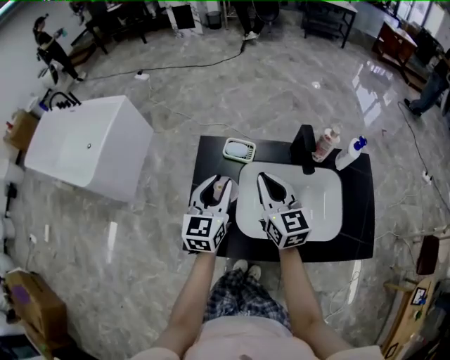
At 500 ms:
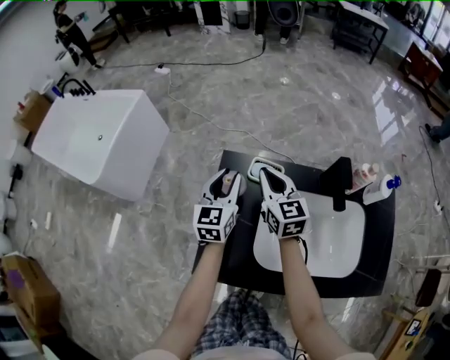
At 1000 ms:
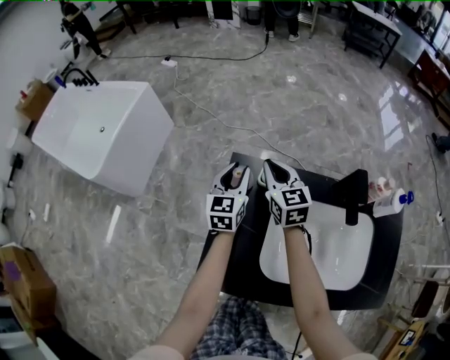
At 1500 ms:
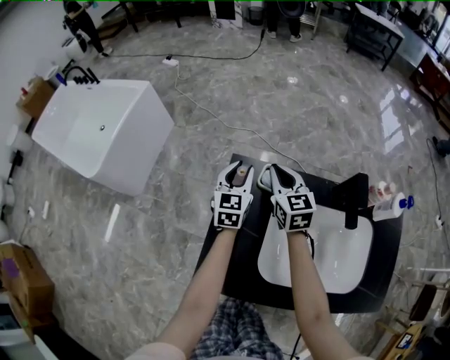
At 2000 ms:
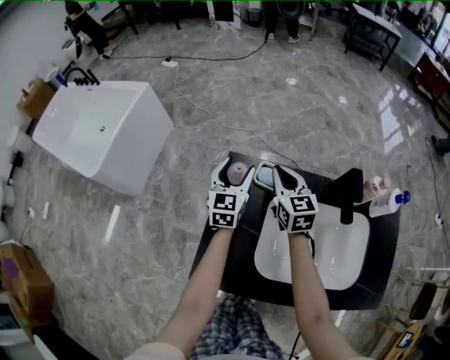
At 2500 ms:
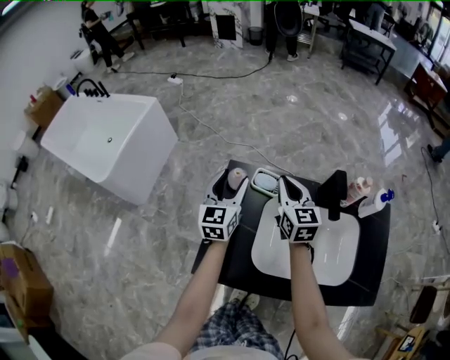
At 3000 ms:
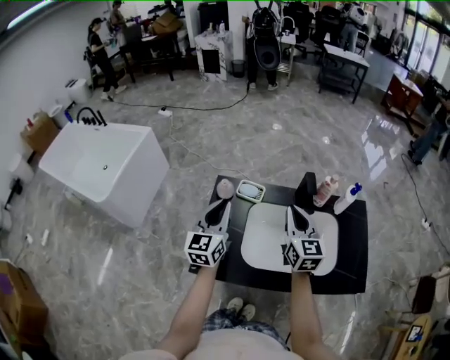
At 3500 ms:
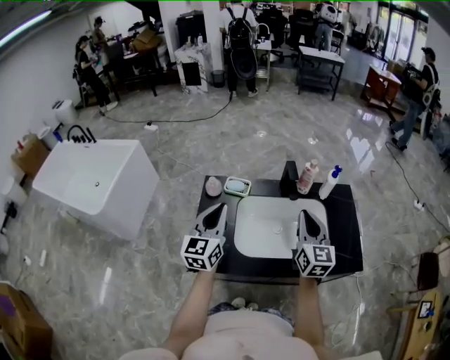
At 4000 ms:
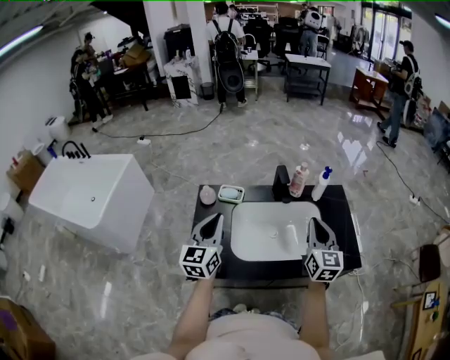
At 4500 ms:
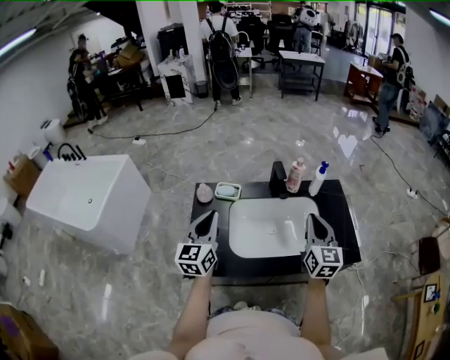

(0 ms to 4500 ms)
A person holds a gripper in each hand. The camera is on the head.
0 ms - 2000 ms: The two grippers go approximately 25 cm forward and downward. The left gripper opens.
2000 ms - 4500 ms: The right gripper shifts approximately 50 cm backward, to the right and upward, and turns by approximately 30 degrees. Meanwhile the left gripper shifts approximately 35 cm backward and upward, and closes up.

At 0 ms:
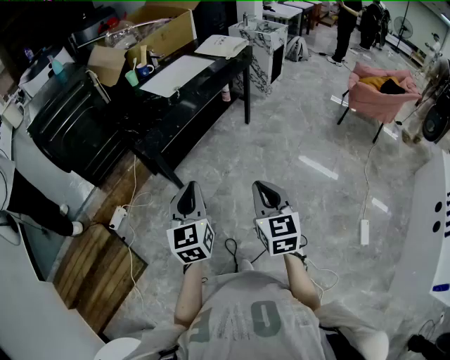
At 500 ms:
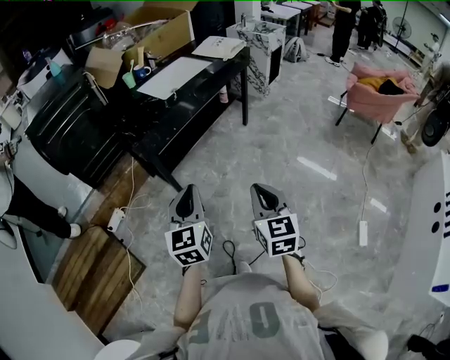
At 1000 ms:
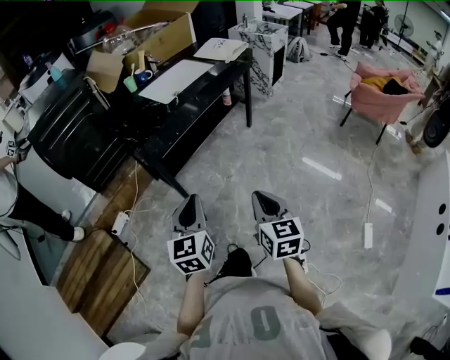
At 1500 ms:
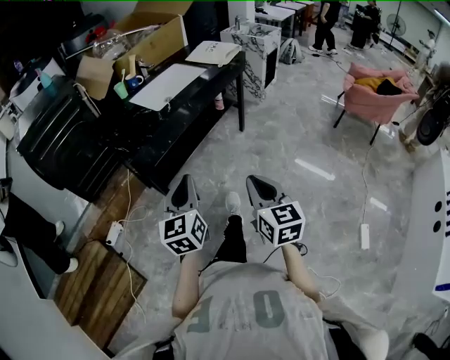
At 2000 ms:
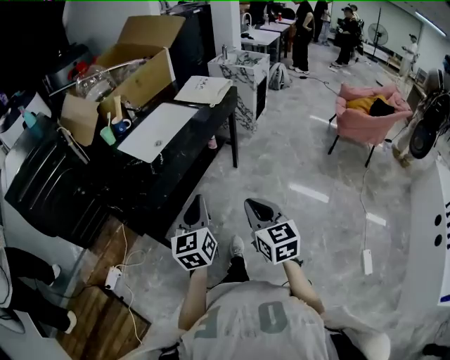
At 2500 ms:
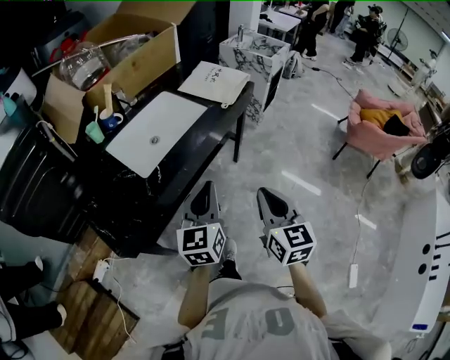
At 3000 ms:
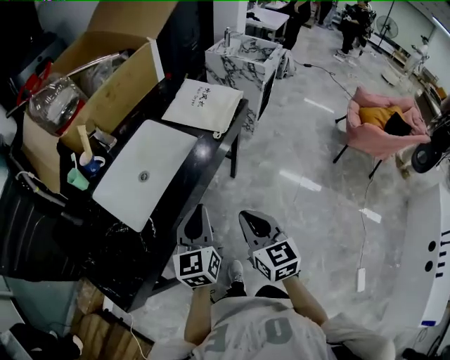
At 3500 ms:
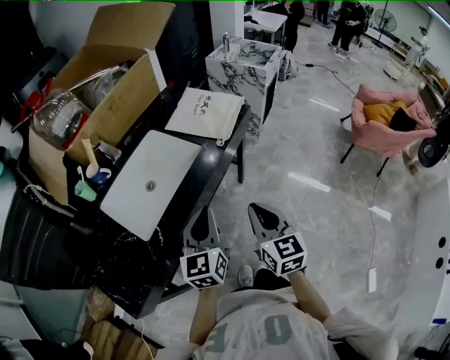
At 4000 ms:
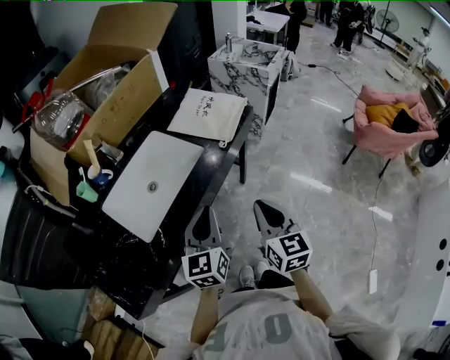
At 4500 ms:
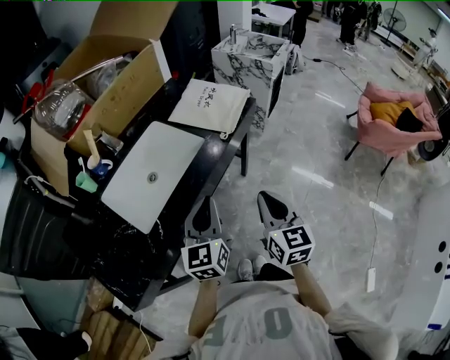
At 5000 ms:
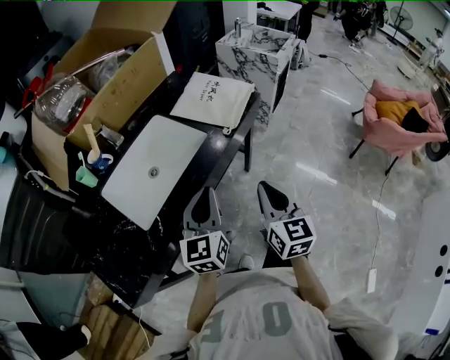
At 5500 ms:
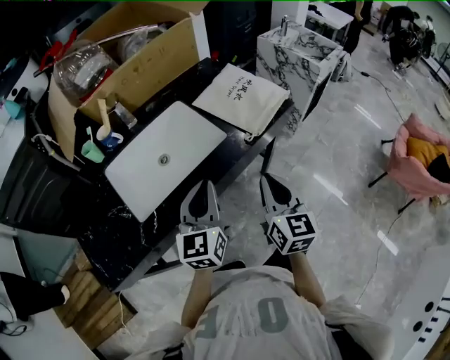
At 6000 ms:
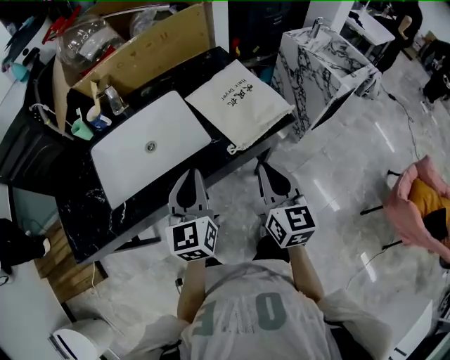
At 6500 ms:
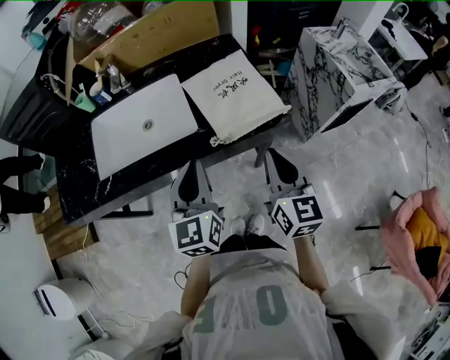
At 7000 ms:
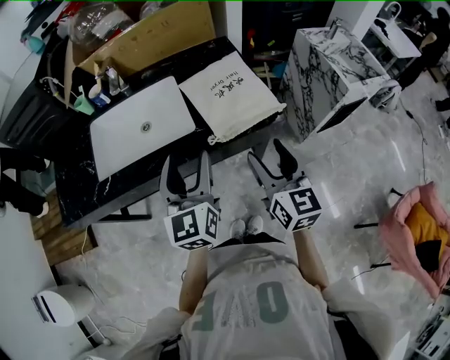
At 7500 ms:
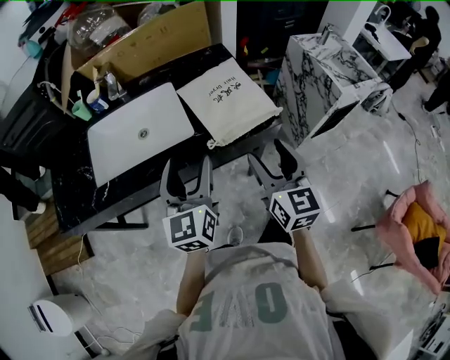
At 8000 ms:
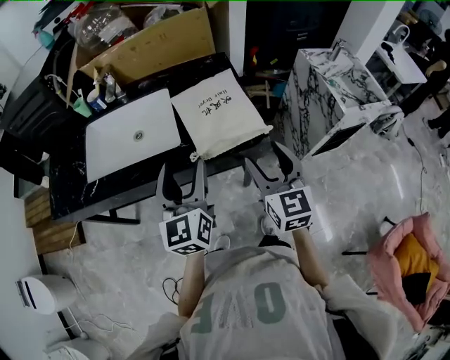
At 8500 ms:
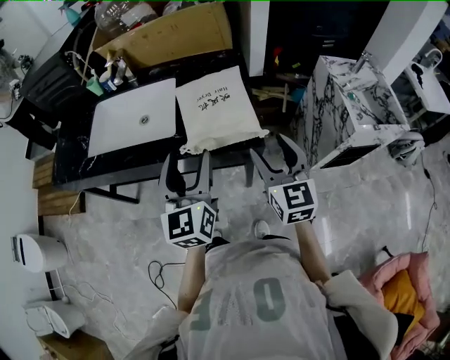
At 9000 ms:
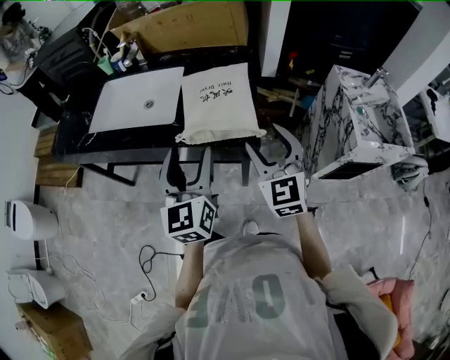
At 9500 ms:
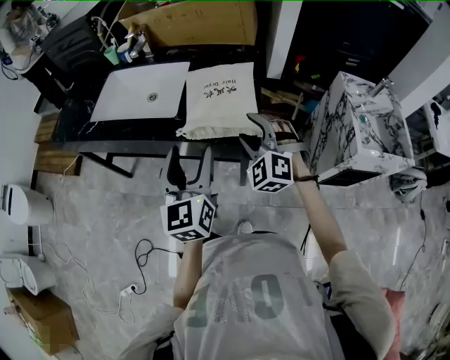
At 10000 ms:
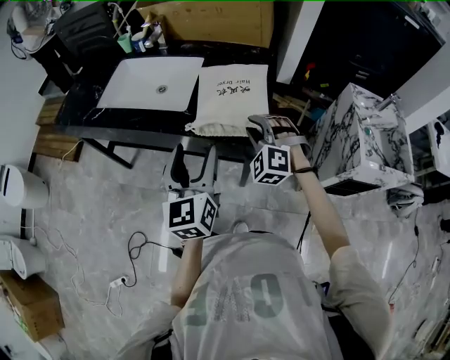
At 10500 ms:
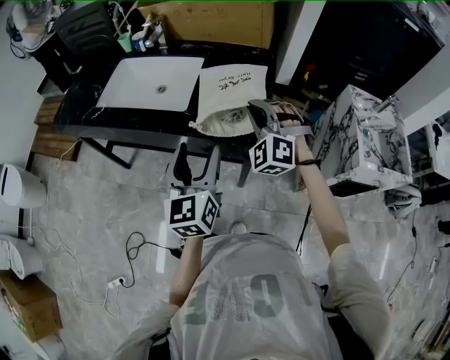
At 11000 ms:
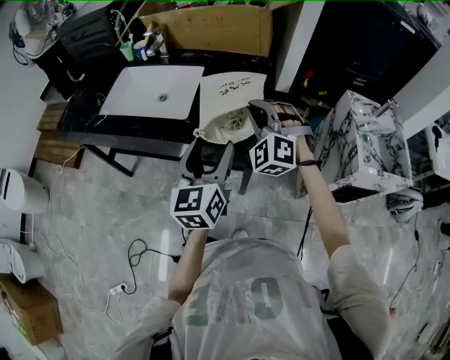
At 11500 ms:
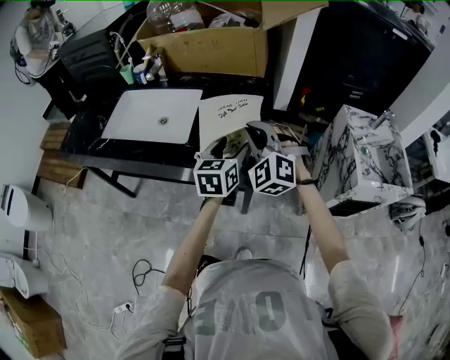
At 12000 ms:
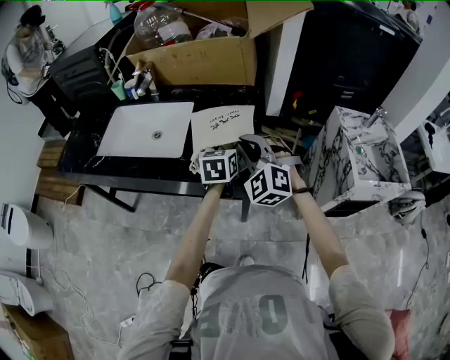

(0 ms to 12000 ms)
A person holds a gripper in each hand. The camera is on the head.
0 ms - 2000 ms: The two grippers go roughly 25 cm forward.
2000 ms - 4000 ms: Both grippers move forward, roughly 35 cm.
4000 ms - 6000 ms: The left gripper shifts by some 15 cm, and swivels roughly 30 degrees, while the right gripper moves about 25 cm, and turns by about 20 degrees.
6000 ms - 8000 ms: Both grippers move to the right, roughly 15 cm. The left gripper rotates approximately 20 degrees, and opens its fingers. Meanwhile the right gripper turns by roughly 20 degrees, and opens its fingers.
8000 ms - 10000 ms: The left gripper moves to the right and backward, approximately 10 cm, and rotates about 20 degrees. Meanwhile the right gripper goes roughly 15 cm forward and downward, twists roughly 70 degrees counterclockwise, seen from behind, and closes.
10000 ms - 12000 ms: The left gripper moves forward, to the right and downward, some 25 cm, and swivels some 30 degrees. Meanwhile the right gripper travels upward by roughly 10 cm.

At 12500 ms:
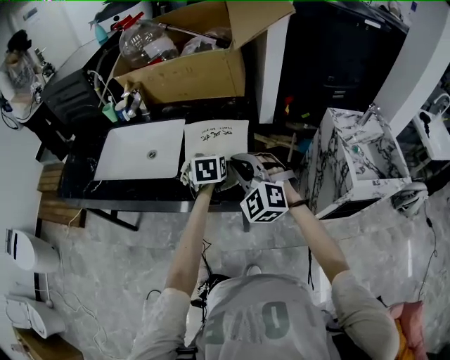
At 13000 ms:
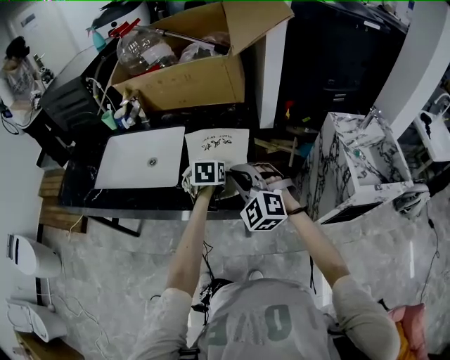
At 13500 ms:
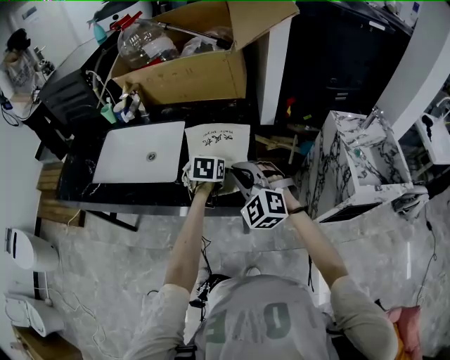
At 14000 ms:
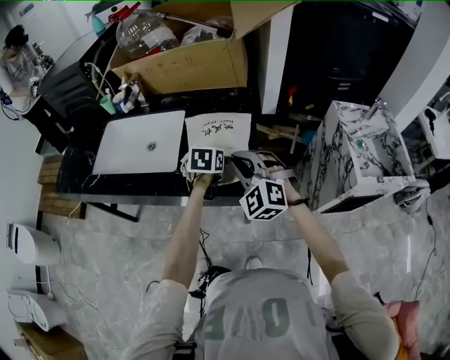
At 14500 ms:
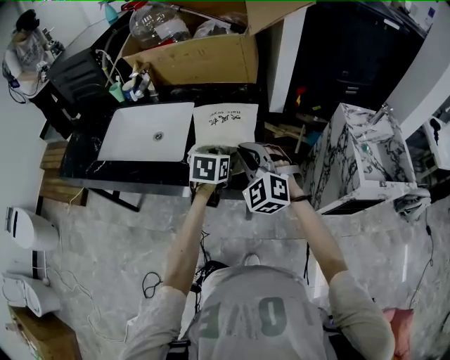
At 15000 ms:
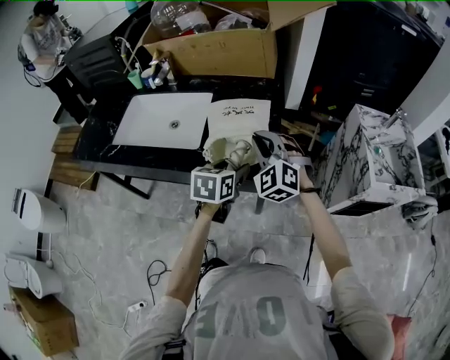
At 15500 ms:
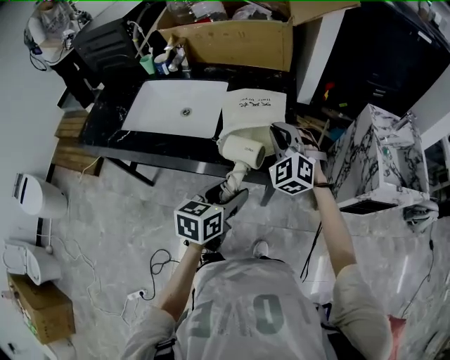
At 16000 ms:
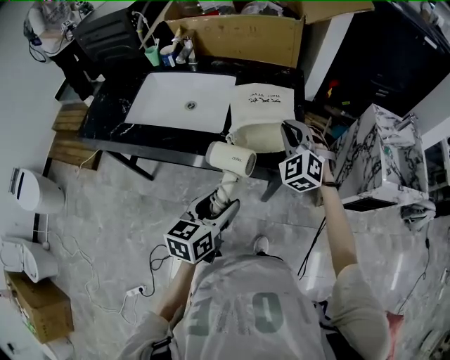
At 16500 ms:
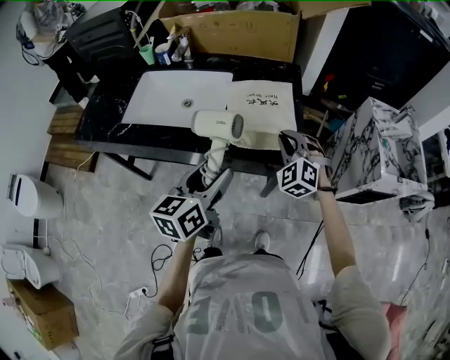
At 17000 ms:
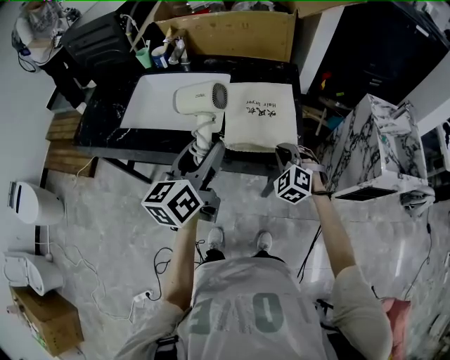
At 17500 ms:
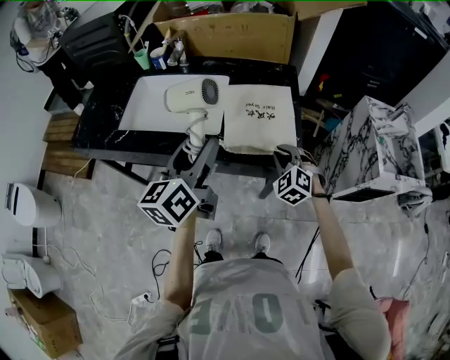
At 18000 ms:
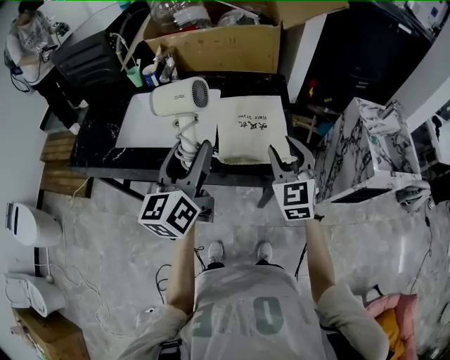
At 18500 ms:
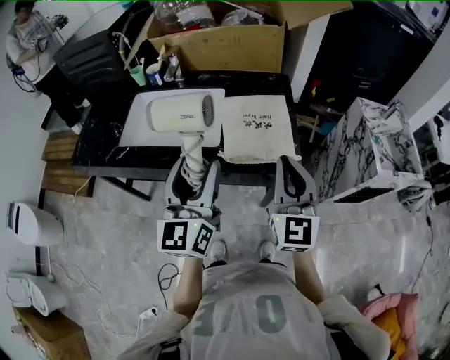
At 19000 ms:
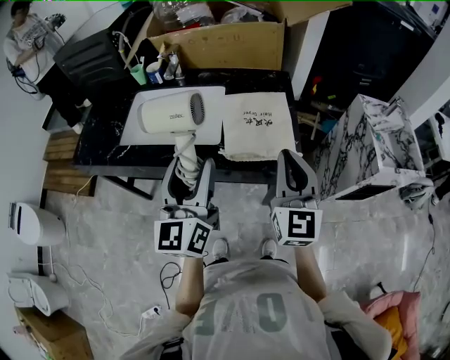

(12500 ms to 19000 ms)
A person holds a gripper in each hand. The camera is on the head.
12500 ms - 14500 ms: The grippers make only small movements.
14500 ms - 17000 ms: The left gripper is displaced to the left, upward and backward by about 25 cm, and angles its fingers upward, by about 40 degrees, while the right gripper shifts about 10 cm downward.
17000 ms - 19000 ms: The left gripper is displaced upward by about 5 cm, and turns by some 20 degrees. Meanwhile the right gripper shifts some 20 cm upward, points its fingers roughly 40 degrees further upward, and opens, then closes again.

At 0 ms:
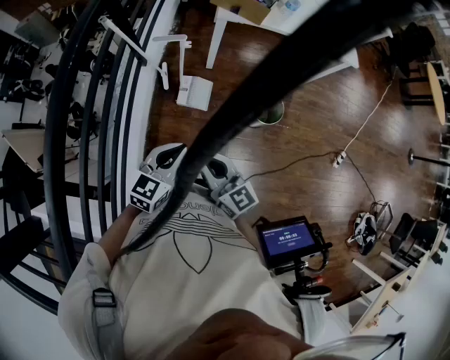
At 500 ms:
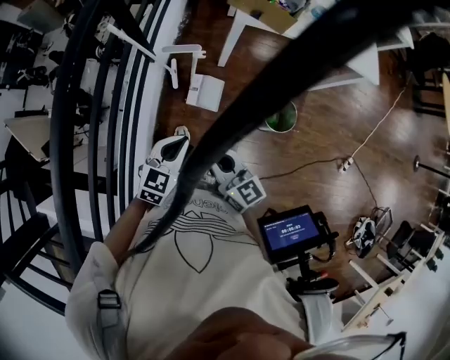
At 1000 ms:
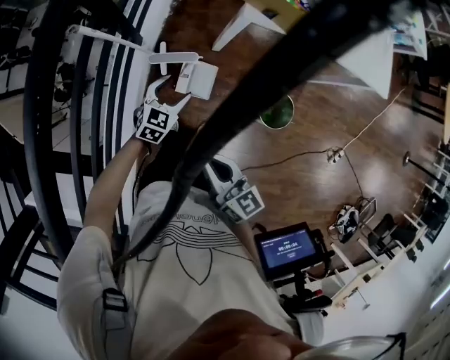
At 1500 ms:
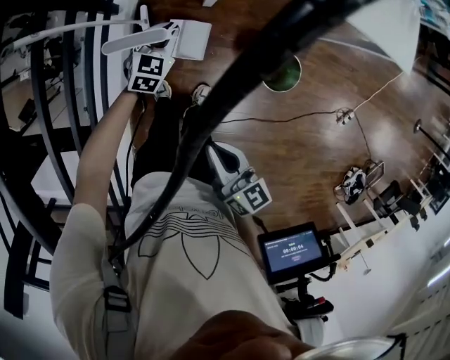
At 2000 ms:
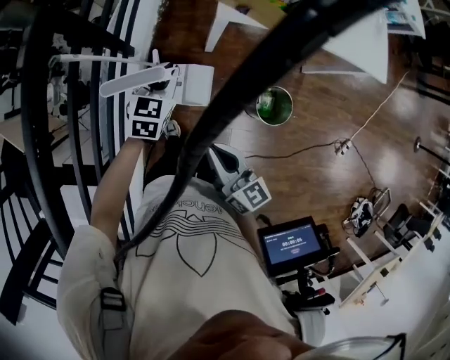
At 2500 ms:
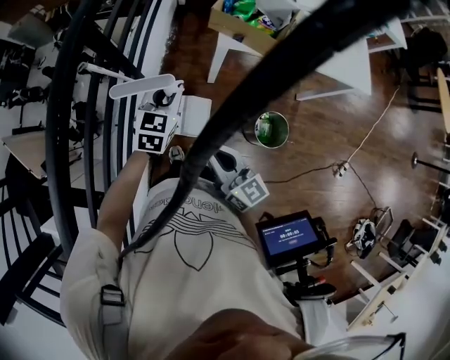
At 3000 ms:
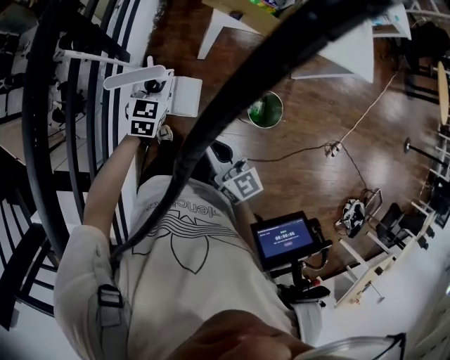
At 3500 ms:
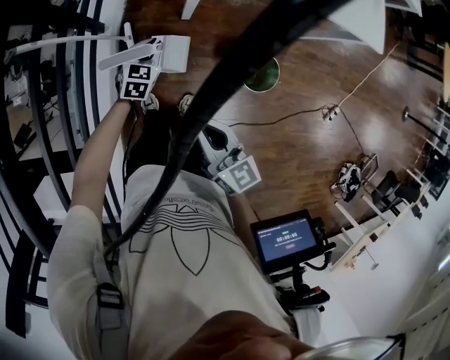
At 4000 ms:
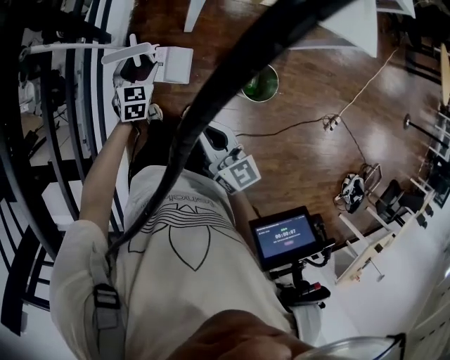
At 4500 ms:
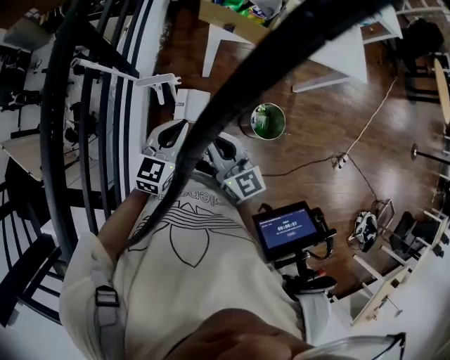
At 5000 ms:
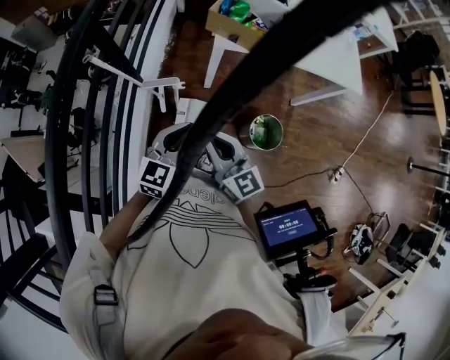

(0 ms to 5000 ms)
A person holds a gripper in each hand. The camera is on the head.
0 ms - 2500 ms: The right gripper heads forward, covering roughly 25 cm. The left gripper is displaced forward by roughly 40 cm, and opens, then closes once more.
2500 ms - 5000 ms: The left gripper goes roughly 15 cm backward, reaches about 25 cm downward, then returns, and opens and closes again; the right gripper moves about 5 cm downward and comes back.
